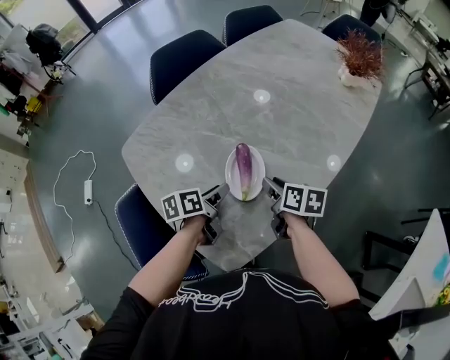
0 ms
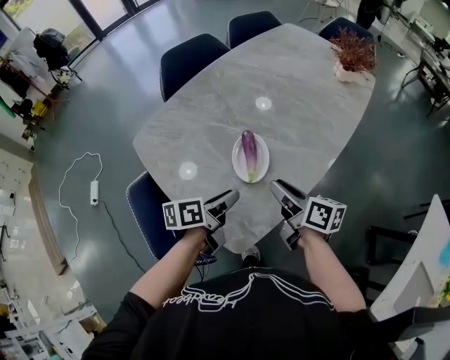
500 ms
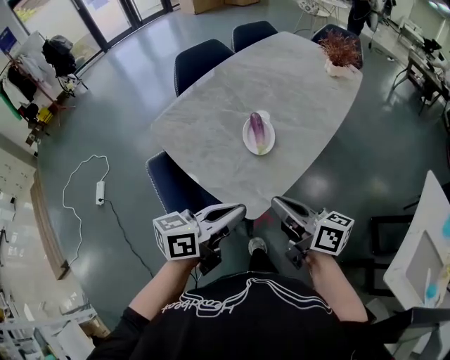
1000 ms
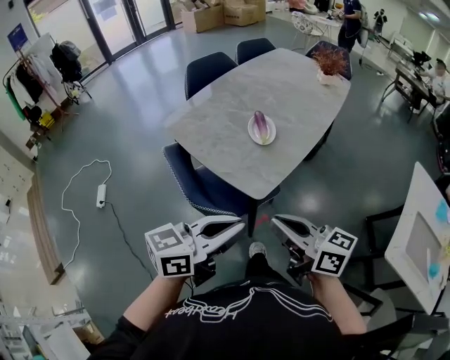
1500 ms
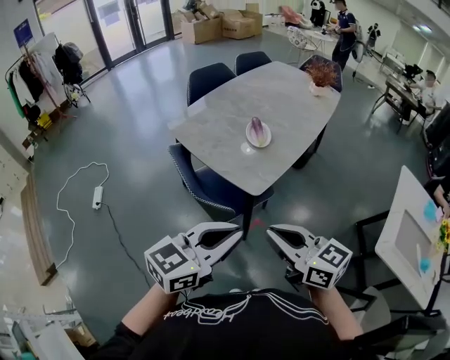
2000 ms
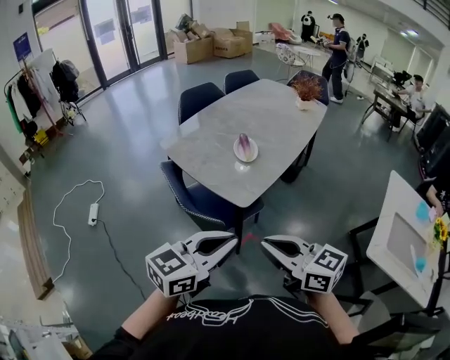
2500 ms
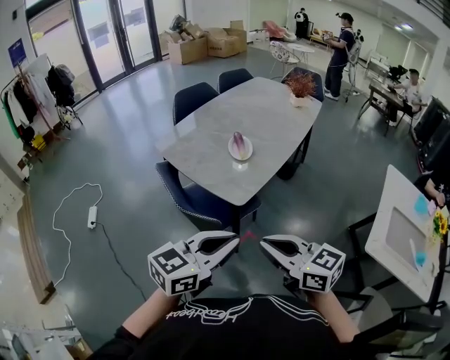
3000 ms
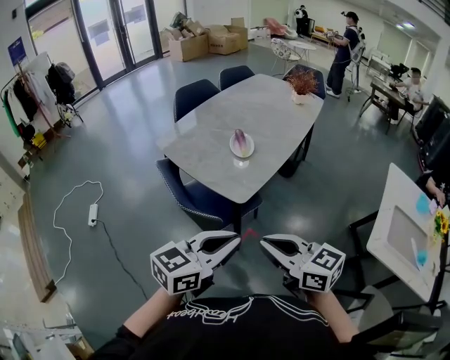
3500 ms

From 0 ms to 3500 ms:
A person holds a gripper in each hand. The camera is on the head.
From 0 ms to 2000 ms: Both grippers are carried backward, approximately 50 cm. The grippers both shift upward by some 25 cm. The right gripper rotates some 50 degrees, and closes up, while the left gripper rotates around the line of its fingers by roughly 60 degrees, clockwise from behind, and closes its fingers.
From 2000 ms to 3500 ms: The grippers make only small movements.

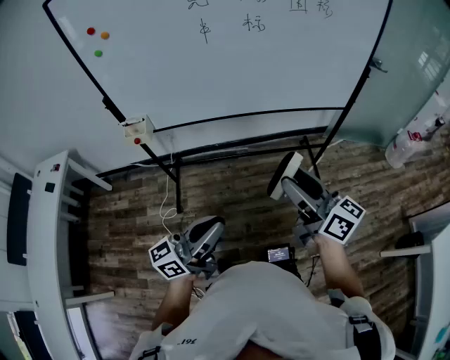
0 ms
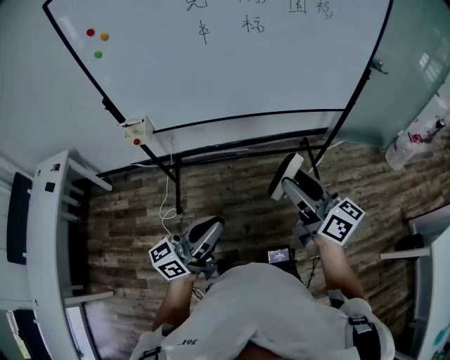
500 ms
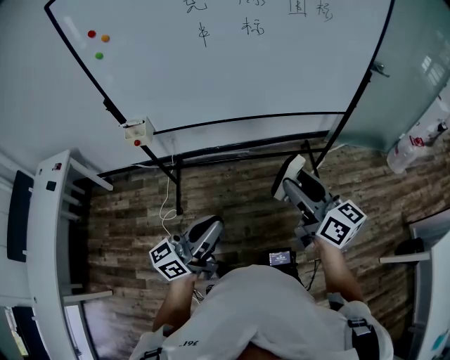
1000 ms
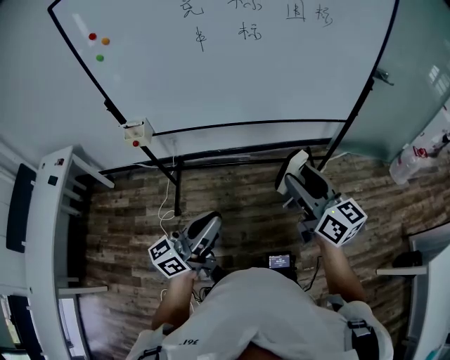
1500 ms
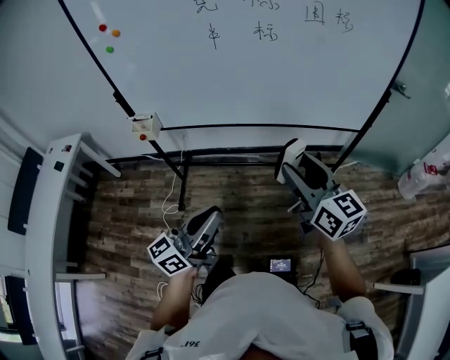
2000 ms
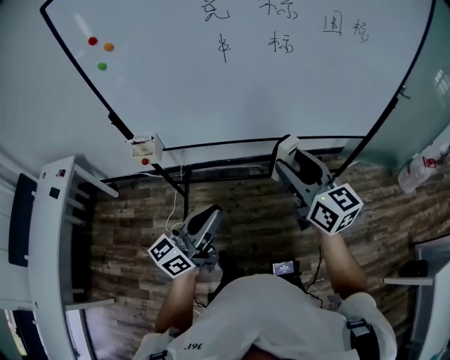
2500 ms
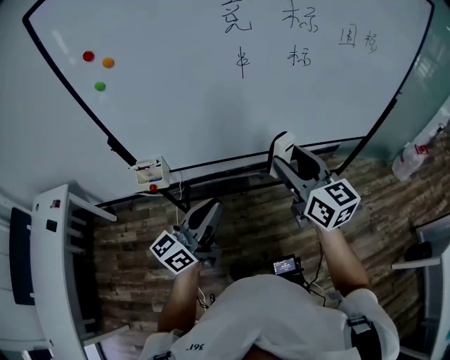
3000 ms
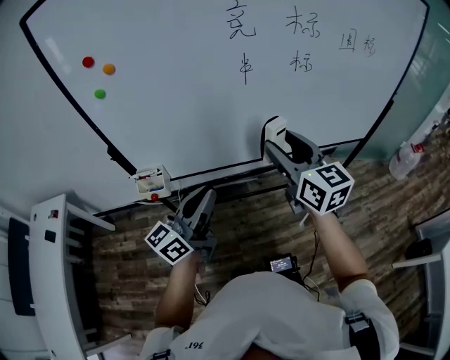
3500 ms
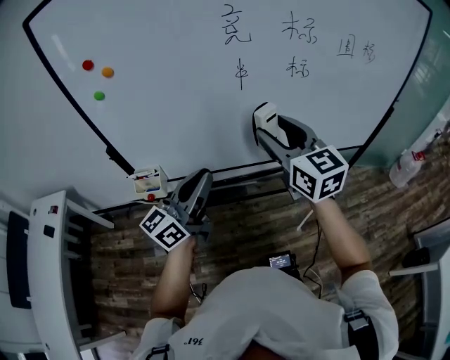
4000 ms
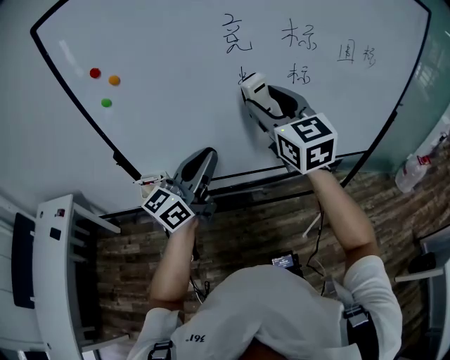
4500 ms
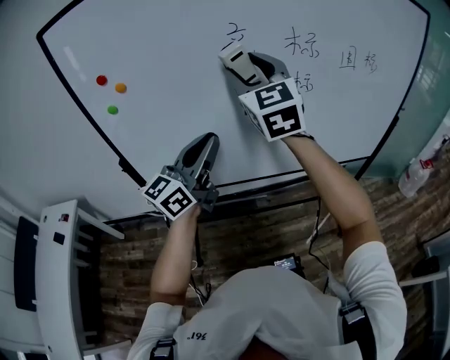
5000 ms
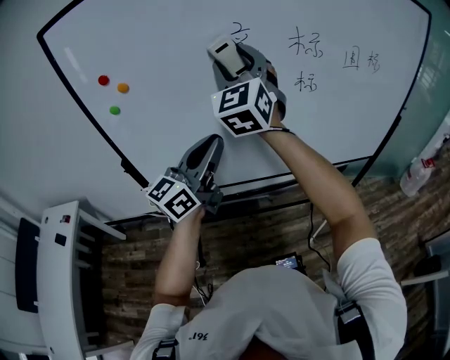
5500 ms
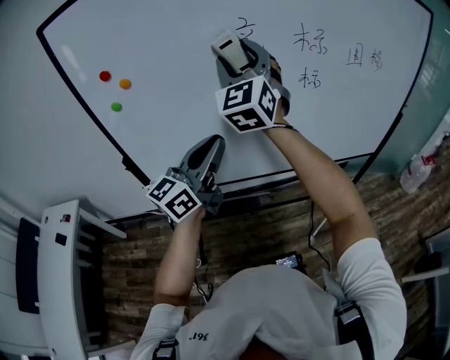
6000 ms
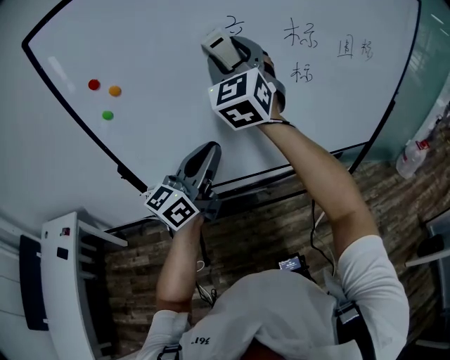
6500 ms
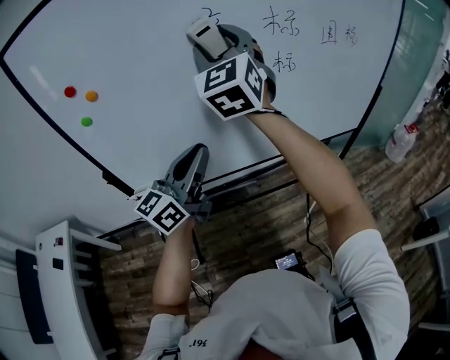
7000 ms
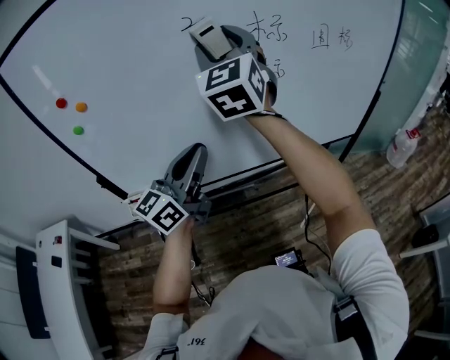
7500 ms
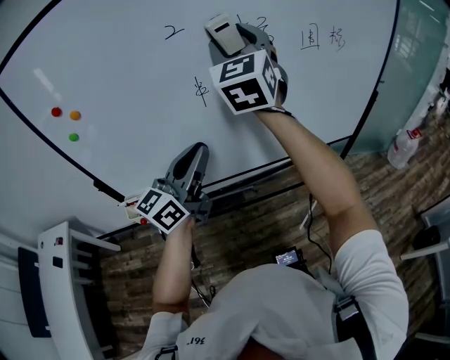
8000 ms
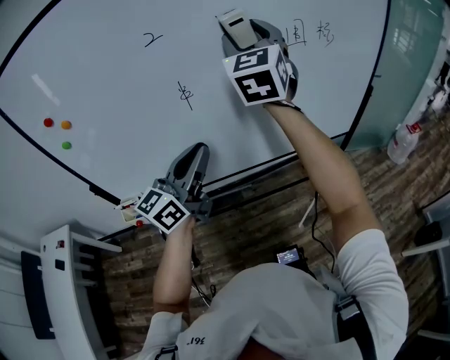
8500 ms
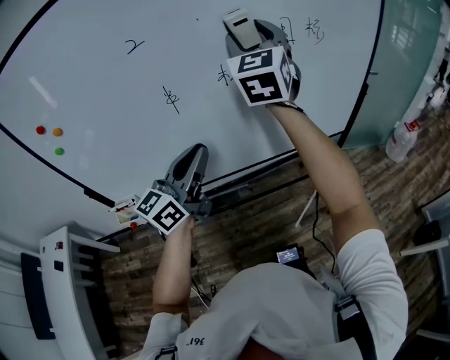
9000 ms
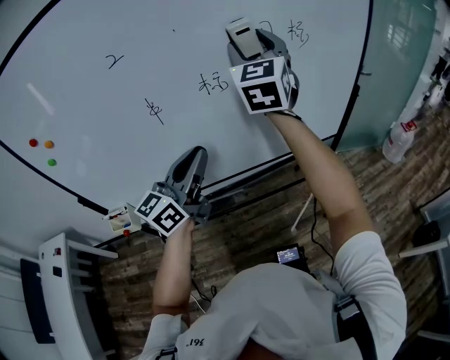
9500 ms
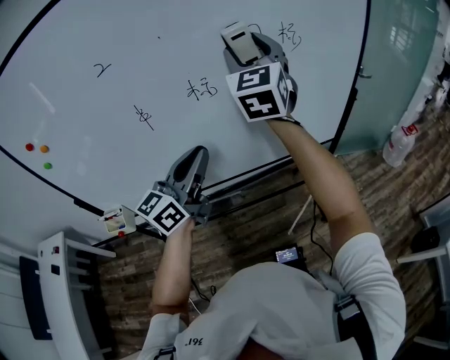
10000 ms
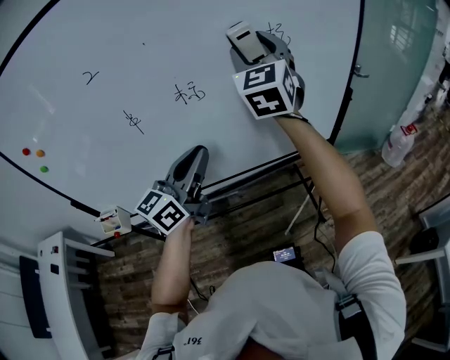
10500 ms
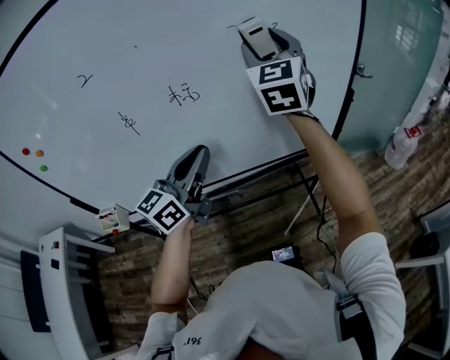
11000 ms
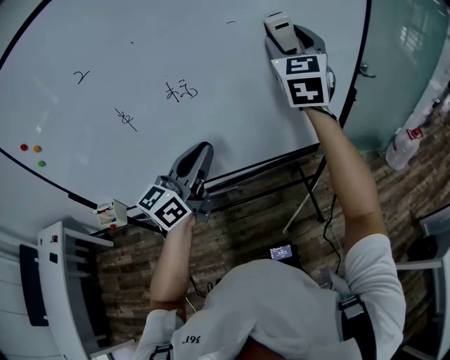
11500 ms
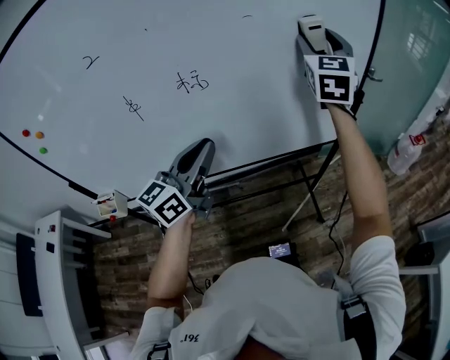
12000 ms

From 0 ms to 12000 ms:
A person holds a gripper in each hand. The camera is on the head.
From 0 ms to 2000 ms: The left gripper shifts about 5 cm forward. Meanwhile the right gripper moves forward, some 10 cm.
From 2000 ms to 4000 ms: The right gripper travels to the left and forward by some 30 cm. The left gripper heads forward and to the left, covering about 30 cm.
From 4000 ms to 6000 ms: The left gripper moves upward and forward, some 10 cm. Meanwhile the right gripper is displaced upward, to the left and forward by some 25 cm, and turns by approximately 50 degrees.
From 6000 ms to 8000 ms: The right gripper heads to the right and forward, covering roughly 15 cm. Meanwhile the left gripper moves to the right, about 10 cm.
From 8000 ms to 10000 ms: The two grippers go approximately 20 cm to the right and forward.
From 10000 ms to 12000 ms: The left gripper ends up approximately 5 cm from where it was. Meanwhile the right gripper moves to the right and forward, roughly 20 cm.

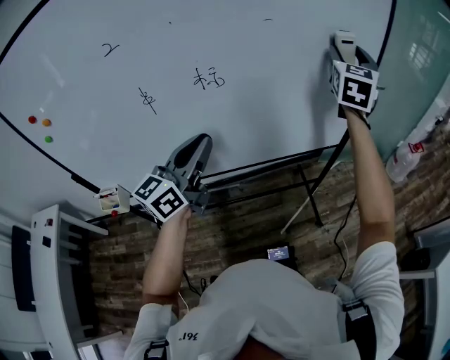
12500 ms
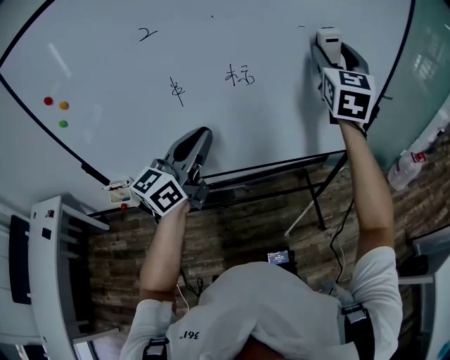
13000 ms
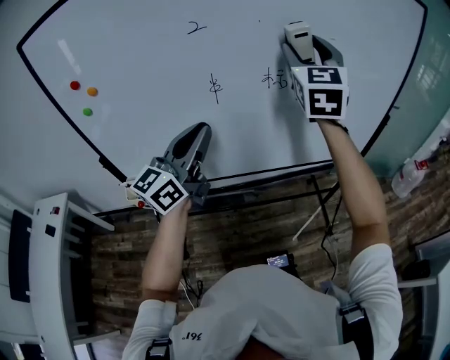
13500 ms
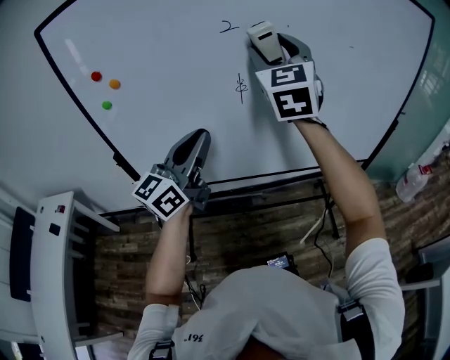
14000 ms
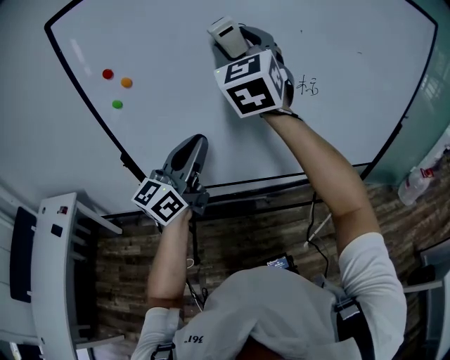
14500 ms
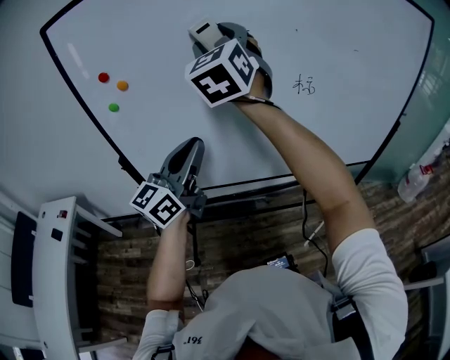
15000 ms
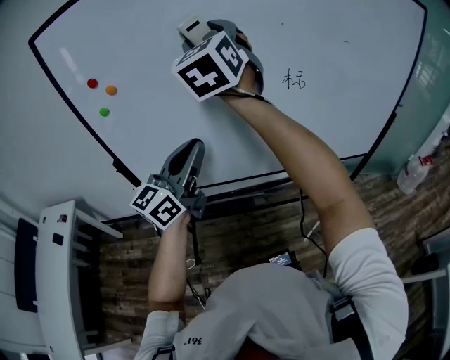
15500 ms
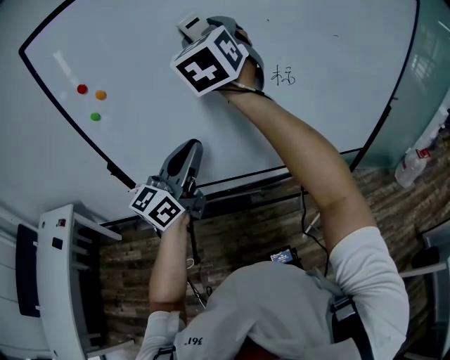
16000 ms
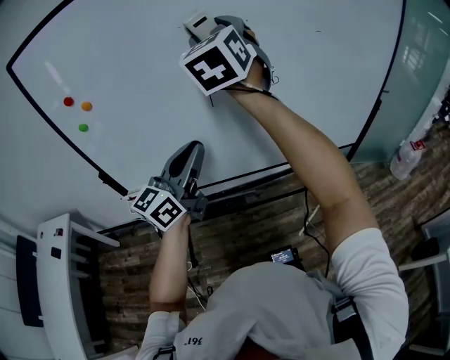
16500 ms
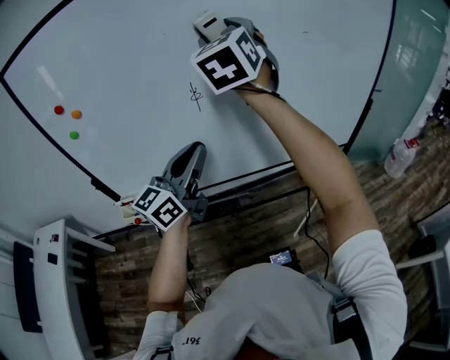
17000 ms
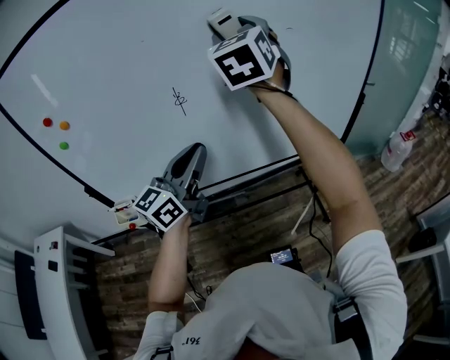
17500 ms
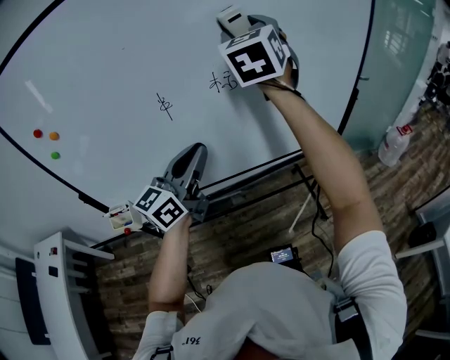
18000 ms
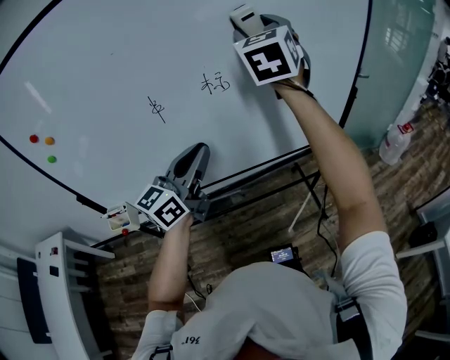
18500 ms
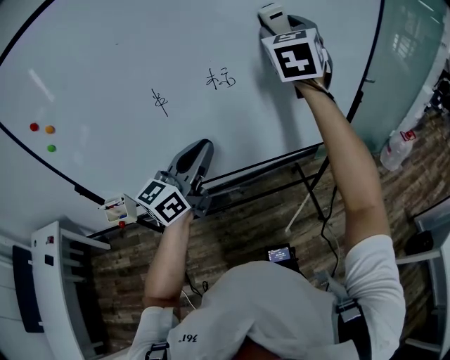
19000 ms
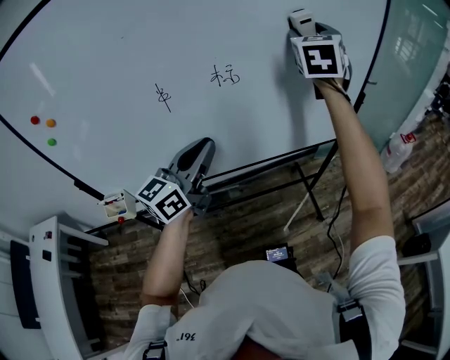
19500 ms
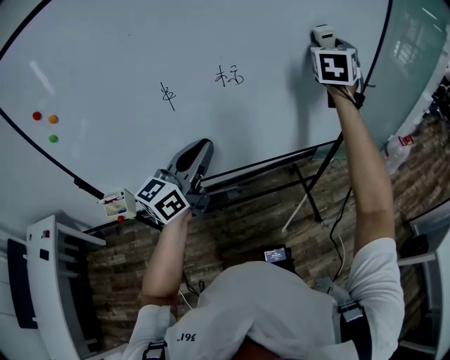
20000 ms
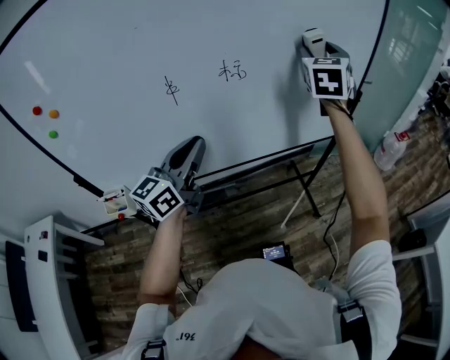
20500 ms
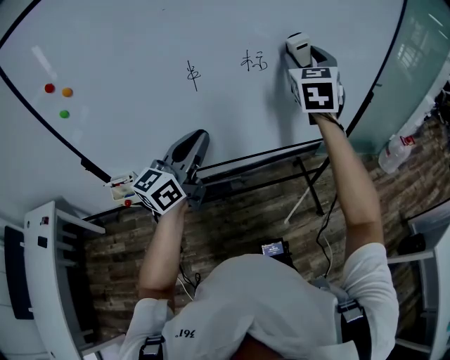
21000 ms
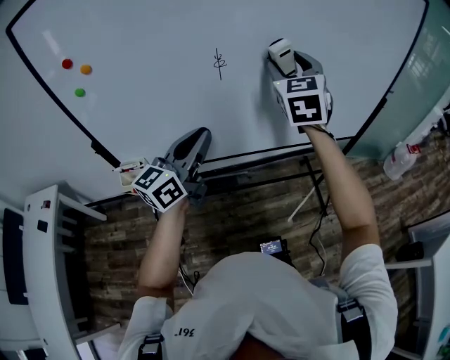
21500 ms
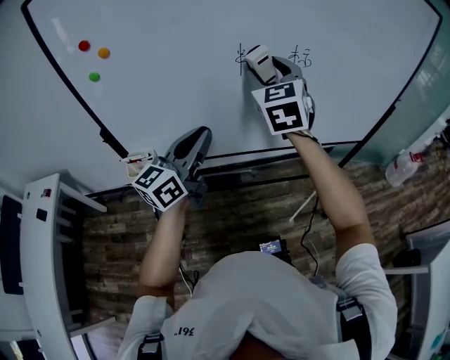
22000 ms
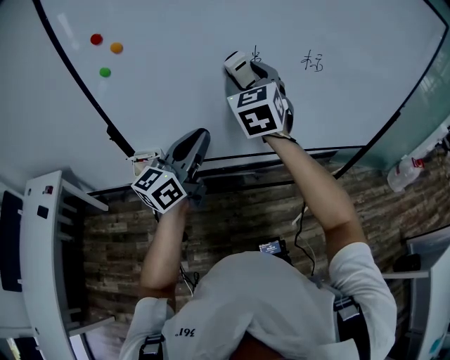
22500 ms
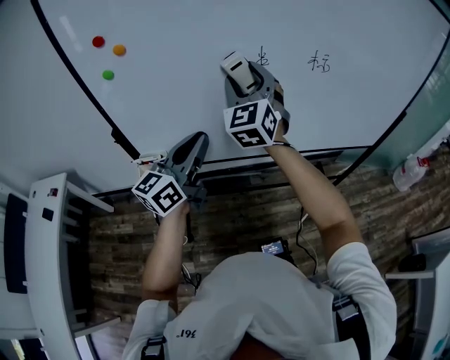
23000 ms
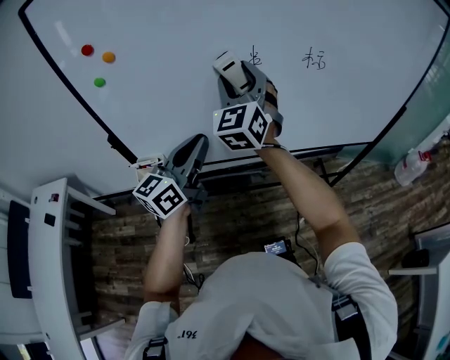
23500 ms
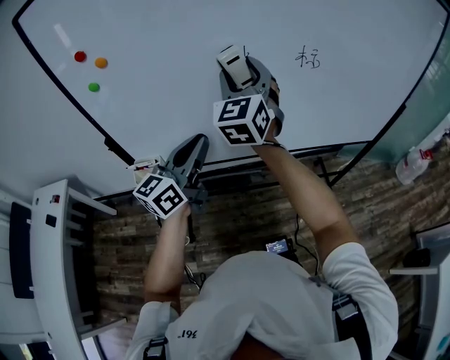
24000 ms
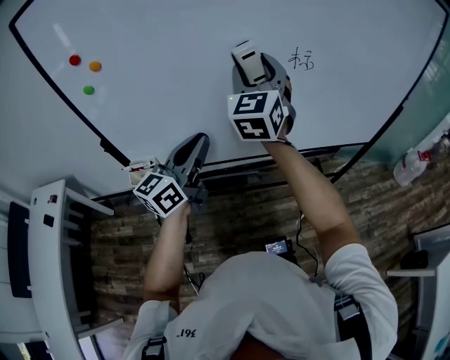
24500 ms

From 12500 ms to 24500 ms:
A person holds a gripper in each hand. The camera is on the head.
From 12500 ms to 14500 ms: The left gripper heads to the left and backward, covering about 25 cm, while the right gripper travels to the left and backward by approximately 60 cm, and swivels roughly 40 degrees.
From 14500 ms to 16500 ms: The two grippers go approximately 5 cm to the right.
From 16500 ms to 18500 ms: The right gripper goes roughly 25 cm to the right and forward; the left gripper heads to the right and forward, covering some 15 cm.
From 18500 ms to 20500 ms: The right gripper heads to the right and downward, covering roughly 10 cm.
From 20500 ms to 22500 ms: The left gripper moves to the left and backward, roughly 15 cm. Meanwhile the right gripper heads to the left and backward, covering approximately 40 cm, and turns by some 30 degrees.
From 22500 ms to 24500 ms: The right gripper shifts roughly 5 cm to the right.
